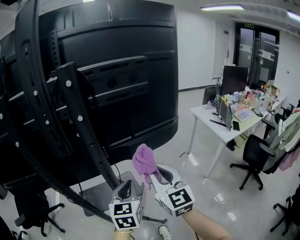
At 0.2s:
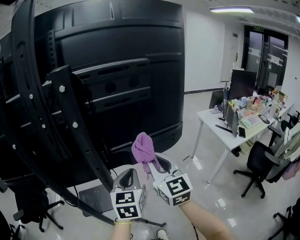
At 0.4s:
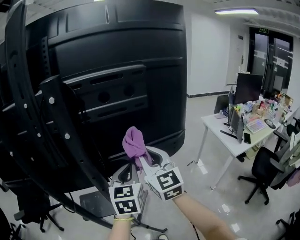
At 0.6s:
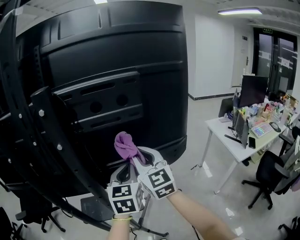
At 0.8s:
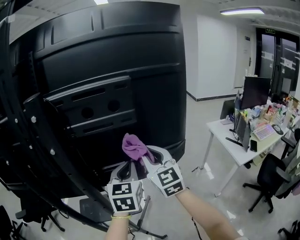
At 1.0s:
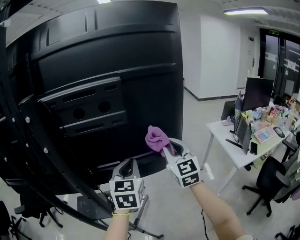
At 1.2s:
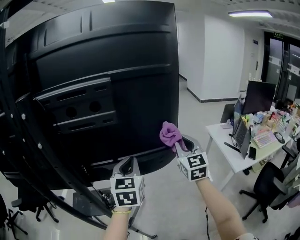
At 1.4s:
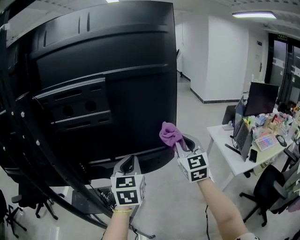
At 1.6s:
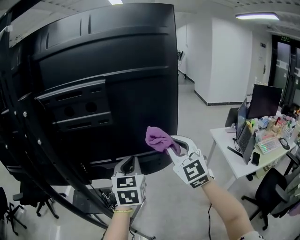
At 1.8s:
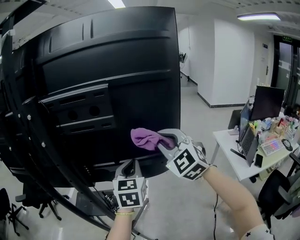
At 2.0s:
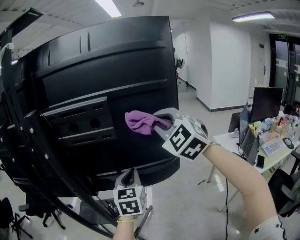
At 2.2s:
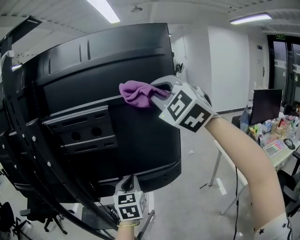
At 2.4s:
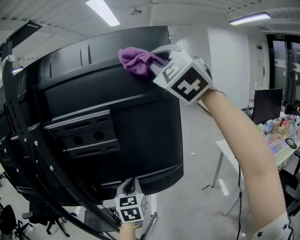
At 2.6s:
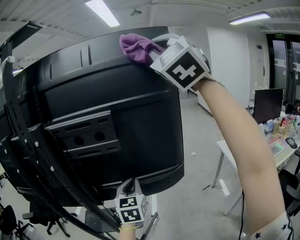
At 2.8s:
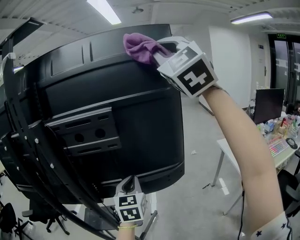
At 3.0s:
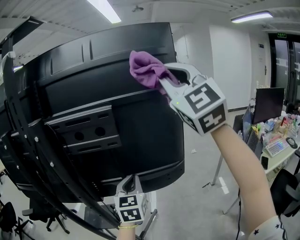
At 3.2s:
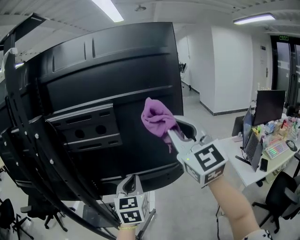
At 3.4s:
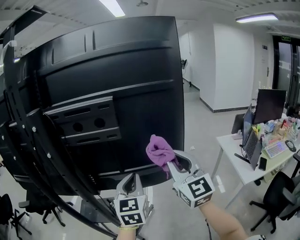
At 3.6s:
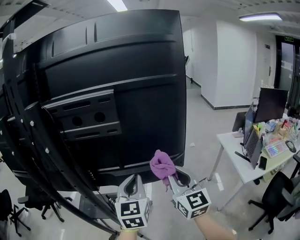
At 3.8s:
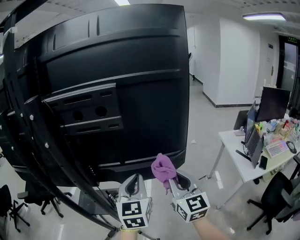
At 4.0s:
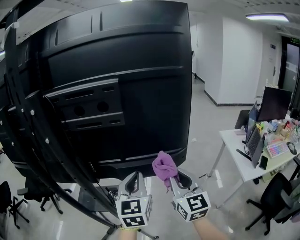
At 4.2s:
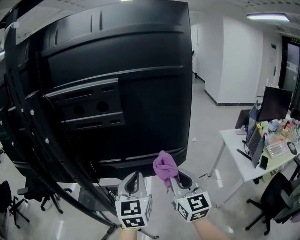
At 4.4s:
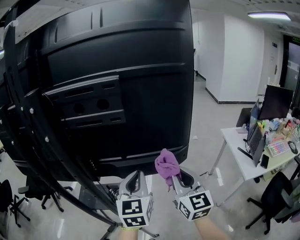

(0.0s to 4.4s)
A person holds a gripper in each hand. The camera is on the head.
0.0s - 1.4s: The right gripper heads to the right and forward, covering approximately 35 cm. The left gripper is displaced to the right, forward and upward by roughly 25 cm.
1.4s - 3.0s: The right gripper travels upward by about 35 cm, and swivels roughly 30 degrees.
3.0s - 4.4s: The right gripper goes about 40 cm downward, and changes its angle by about 40 degrees. Meanwhile the left gripper moves backward, approximately 5 cm.

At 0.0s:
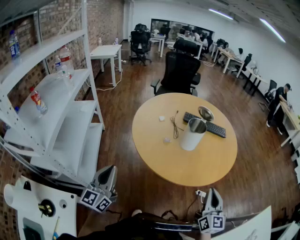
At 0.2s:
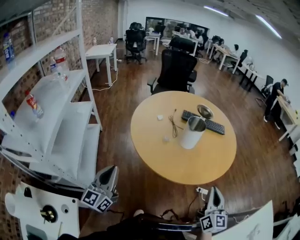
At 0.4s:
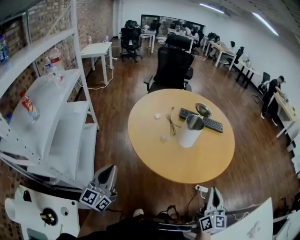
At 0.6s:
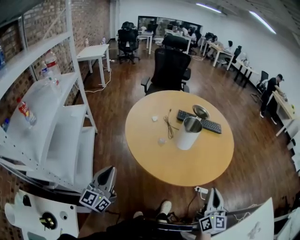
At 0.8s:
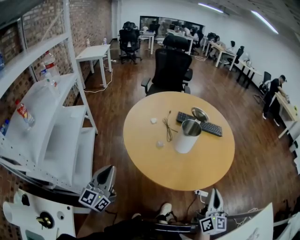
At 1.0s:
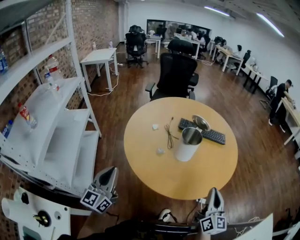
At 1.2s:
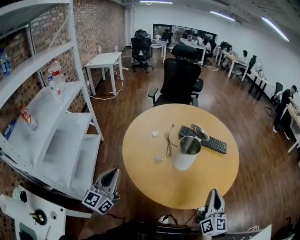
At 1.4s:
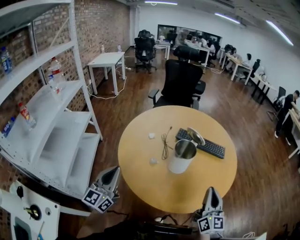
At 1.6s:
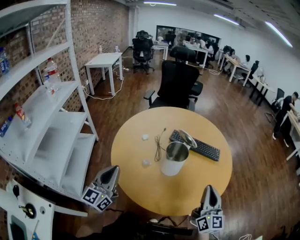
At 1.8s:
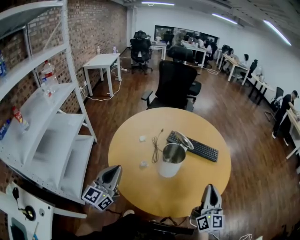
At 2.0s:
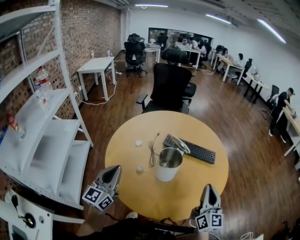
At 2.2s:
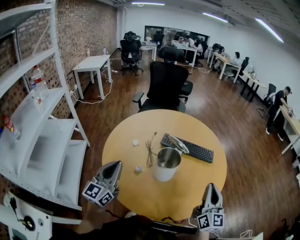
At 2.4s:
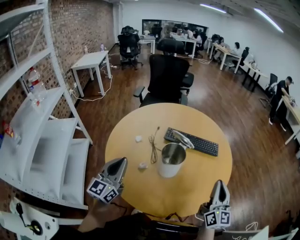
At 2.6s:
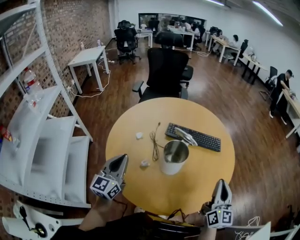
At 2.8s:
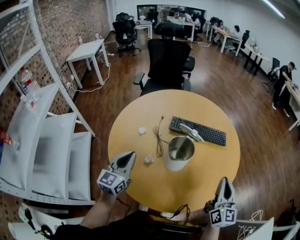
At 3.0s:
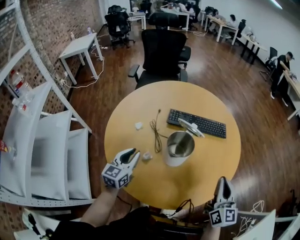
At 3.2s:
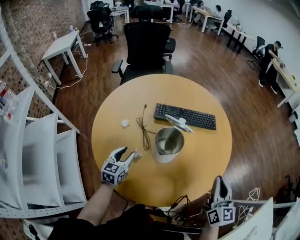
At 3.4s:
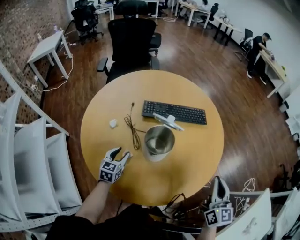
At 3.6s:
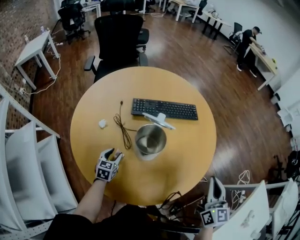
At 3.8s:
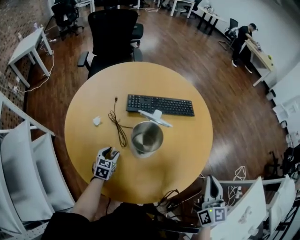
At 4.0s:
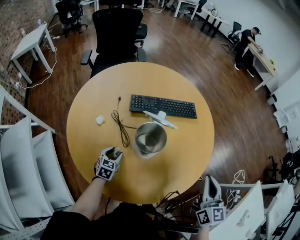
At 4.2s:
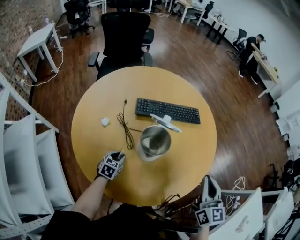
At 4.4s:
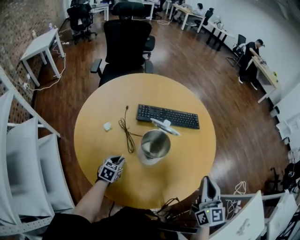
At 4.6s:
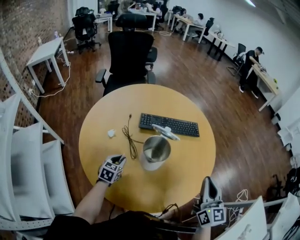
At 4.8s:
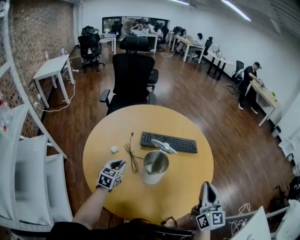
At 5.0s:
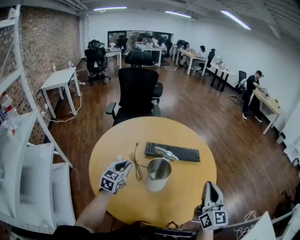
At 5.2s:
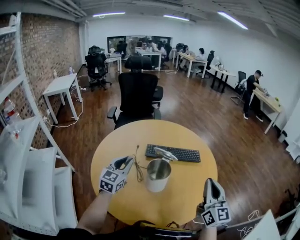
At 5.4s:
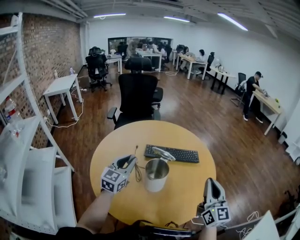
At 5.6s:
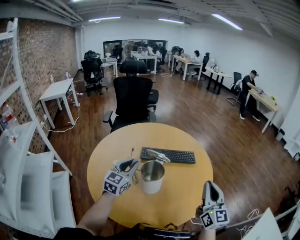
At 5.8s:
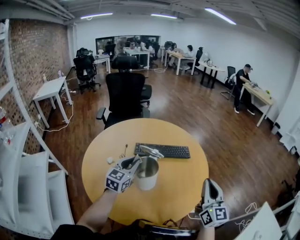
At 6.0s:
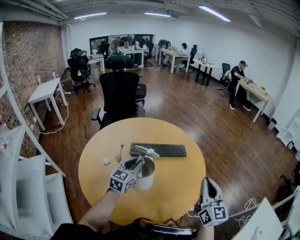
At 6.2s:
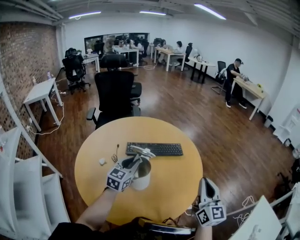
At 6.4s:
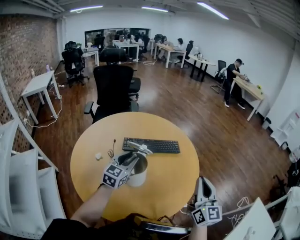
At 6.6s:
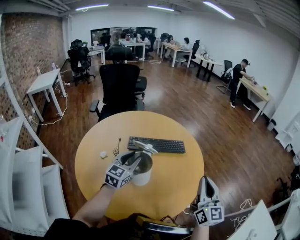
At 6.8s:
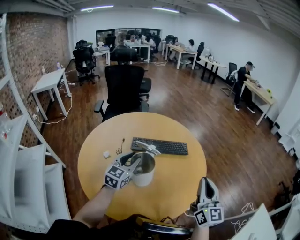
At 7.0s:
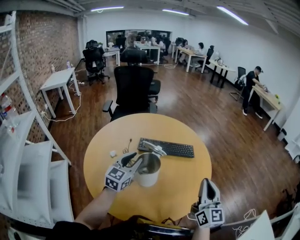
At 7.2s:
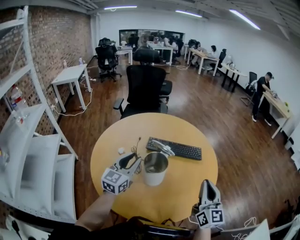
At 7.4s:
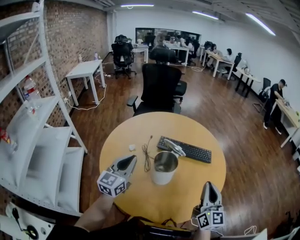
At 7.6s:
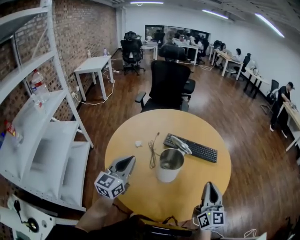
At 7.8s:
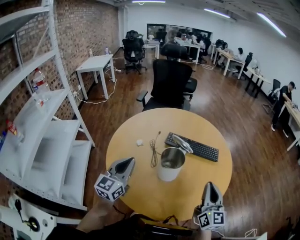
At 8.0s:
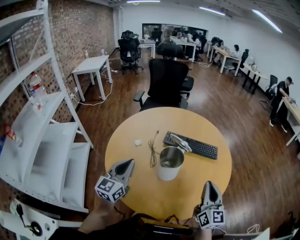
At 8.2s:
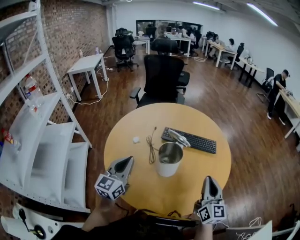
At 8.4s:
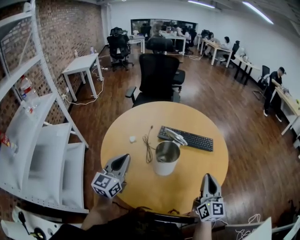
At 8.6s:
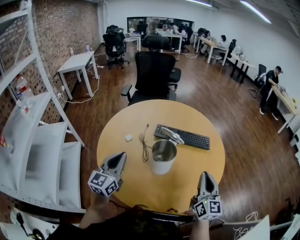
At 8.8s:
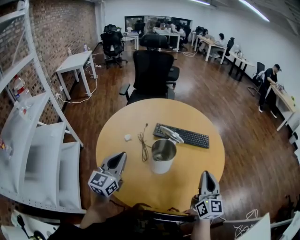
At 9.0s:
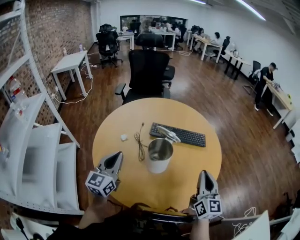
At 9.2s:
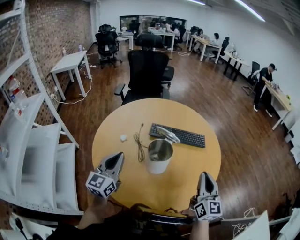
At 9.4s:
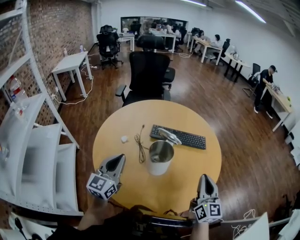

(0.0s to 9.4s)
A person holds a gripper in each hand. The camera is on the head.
0.0s - 1.6s: Both grippers move forward and to the right, roughly 25 cm.
1.6s - 3.2s: The left gripper moves forward and downward, approximately 30 cm, angles its fingers downward, by approximately 30 degrees, and opens its fingers, while the right gripper heads downward, covering roughly 5 cm, and changes its angle by some 20 degrees.
3.2s - 4.8s: The right gripper goes approximately 5 cm upward. Meanwhile the left gripper moves forward, some 5 cm, moves roughly 15 cm downward and comes back, and closes its fingers.
4.8s - 6.2s: The right gripper goes about 5 cm to the right. The left gripper moves to the right and upward, approximately 20 cm, and swivels approximately 20 degrees.
6.2s - 7.8s: The right gripper shifts some 5 cm to the left, while the left gripper is displaced backward and to the left by about 20 cm, and swivels approximately 30 degrees.
7.8s - 9.4s: The grippers stay close to where they were, moving slightly.

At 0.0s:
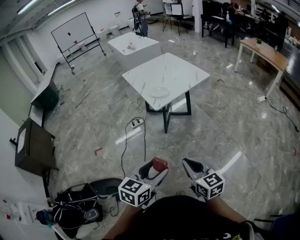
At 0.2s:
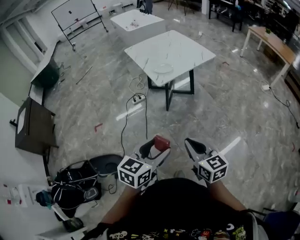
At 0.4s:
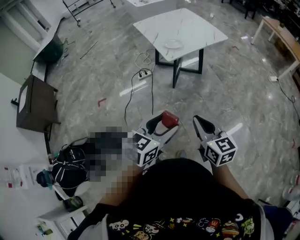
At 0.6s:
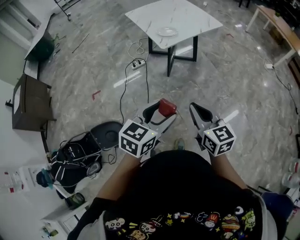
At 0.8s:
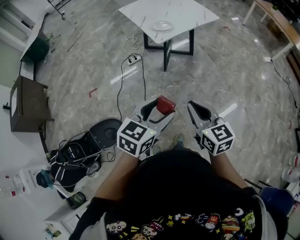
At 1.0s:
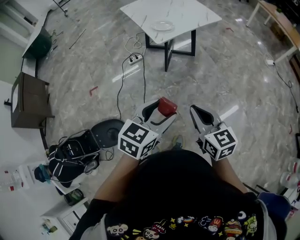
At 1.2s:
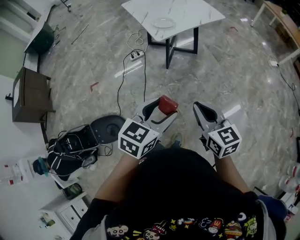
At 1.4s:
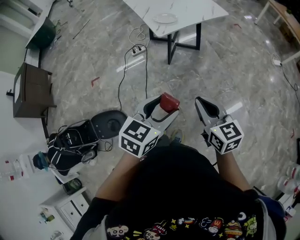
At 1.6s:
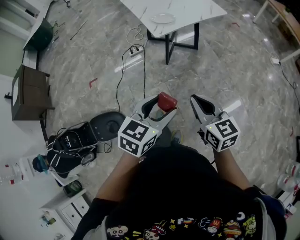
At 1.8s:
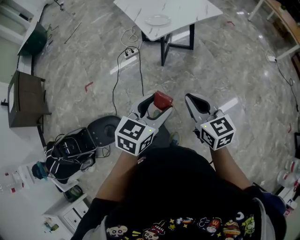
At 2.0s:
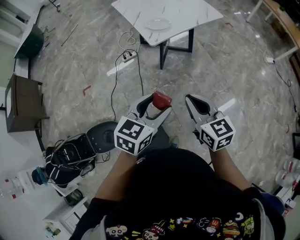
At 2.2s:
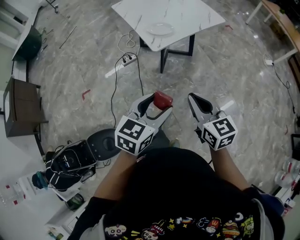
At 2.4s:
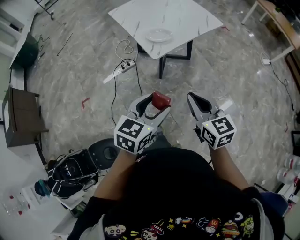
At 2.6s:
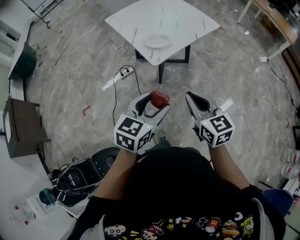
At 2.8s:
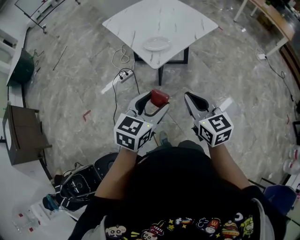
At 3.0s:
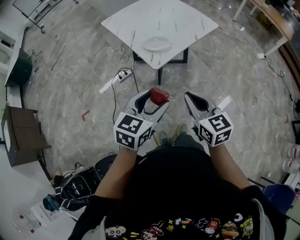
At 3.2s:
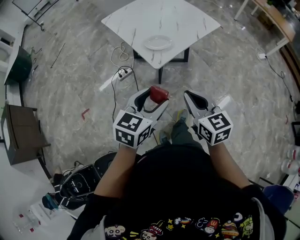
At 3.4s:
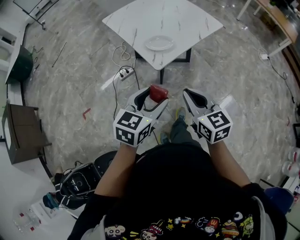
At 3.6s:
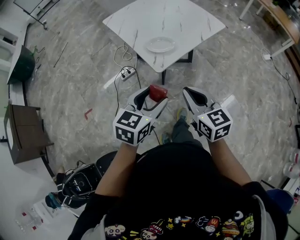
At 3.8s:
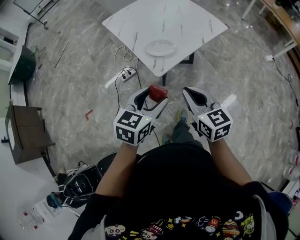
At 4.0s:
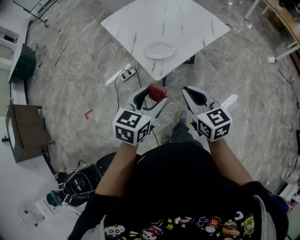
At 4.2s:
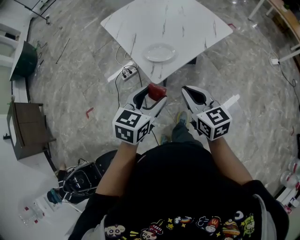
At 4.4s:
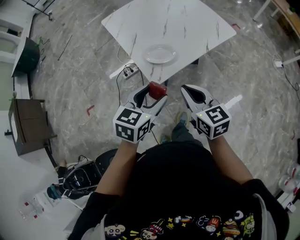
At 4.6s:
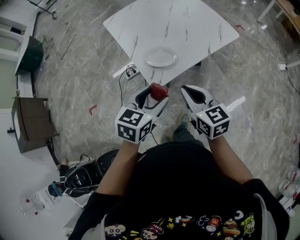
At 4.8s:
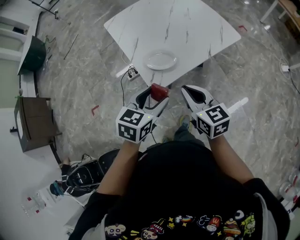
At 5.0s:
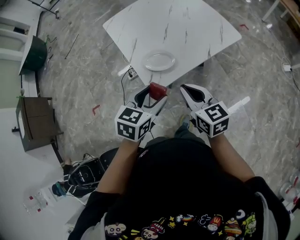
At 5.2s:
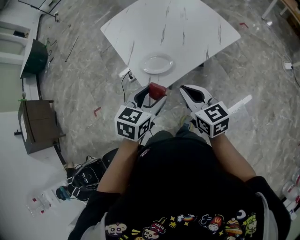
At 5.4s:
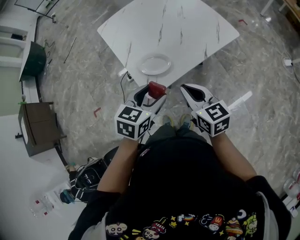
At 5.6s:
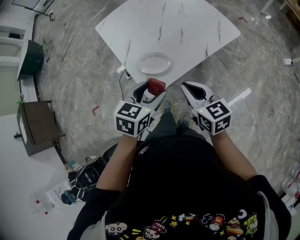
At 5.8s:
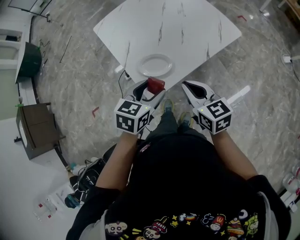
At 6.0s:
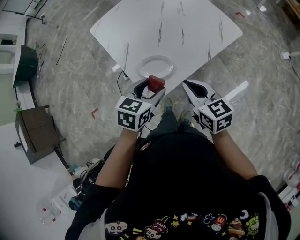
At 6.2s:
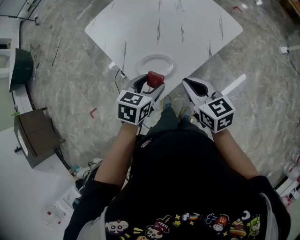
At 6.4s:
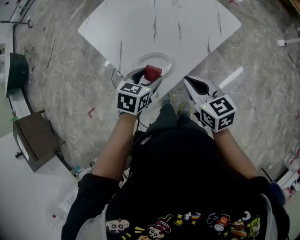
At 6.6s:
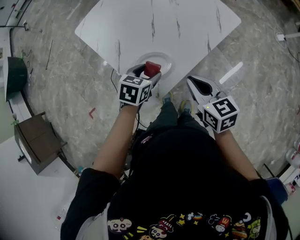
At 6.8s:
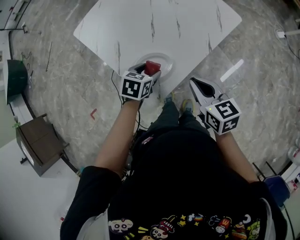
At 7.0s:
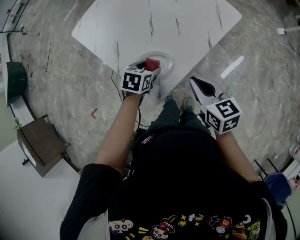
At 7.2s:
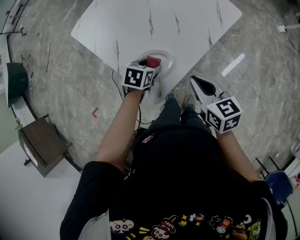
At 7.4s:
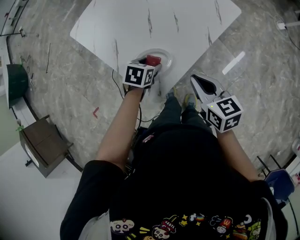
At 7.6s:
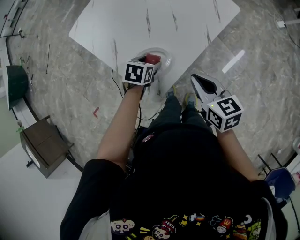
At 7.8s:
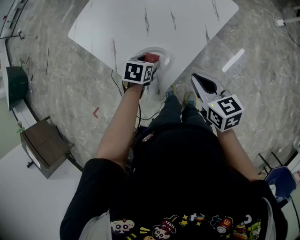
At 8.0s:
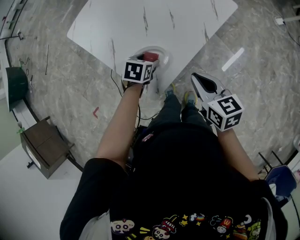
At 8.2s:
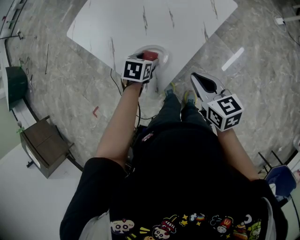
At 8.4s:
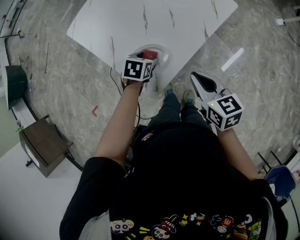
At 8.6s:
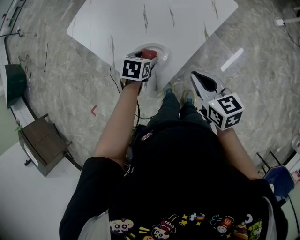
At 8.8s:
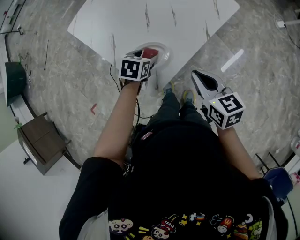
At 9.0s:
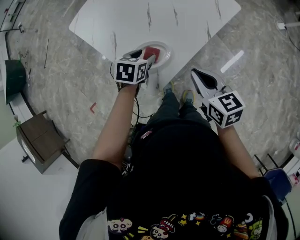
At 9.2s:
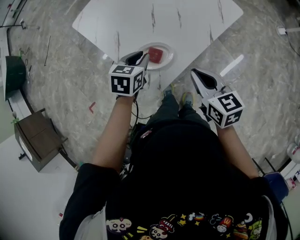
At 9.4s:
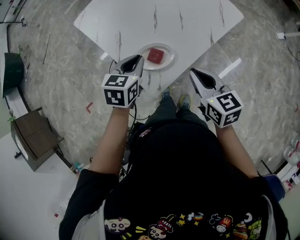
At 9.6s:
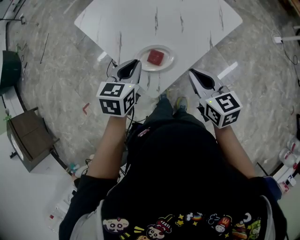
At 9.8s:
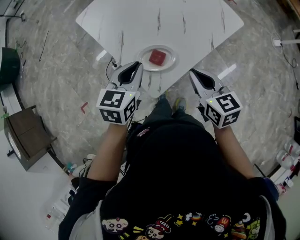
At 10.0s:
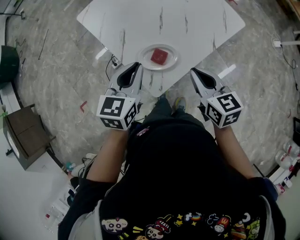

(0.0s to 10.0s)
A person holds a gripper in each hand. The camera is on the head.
0.0s - 1.4s: The right gripper shifts approximately 5 cm forward. Meanwhile the left gripper travels forward and to the right by approximately 5 cm.
1.4s - 2.8s: Both grippers travel together forward and to the left, some 25 cm.
2.8s - 4.2s: The grippers both shift forward by some 15 cm.
4.2s - 5.8s: Both grippers travel together forward, about 15 cm.
5.8s - 7.2s: The left gripper is displaced downward and forward by roughly 20 cm, and swivels about 20 degrees; the right gripper heads downward, covering roughly 5 cm.
7.2s - 8.6s: The grippers stay close to where they were, moving slightly.
8.6s - 10.0s: The left gripper travels upward by approximately 20 cm, tips its fingers upward by about 30 degrees, and closes; the right gripper travels to the left by roughly 5 cm.
